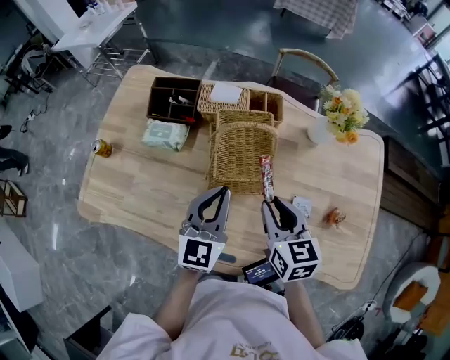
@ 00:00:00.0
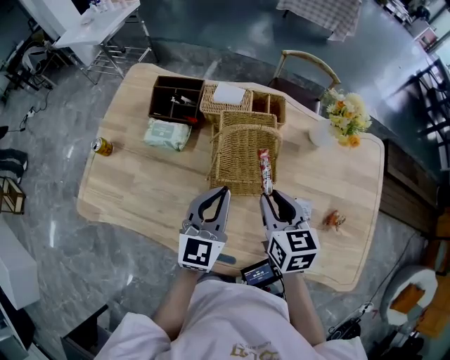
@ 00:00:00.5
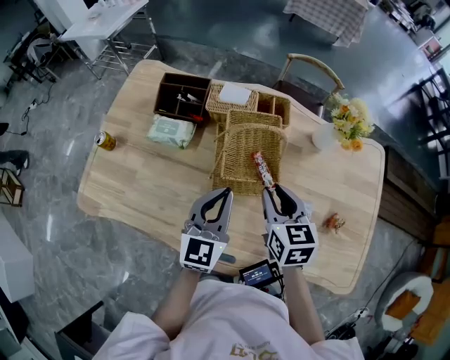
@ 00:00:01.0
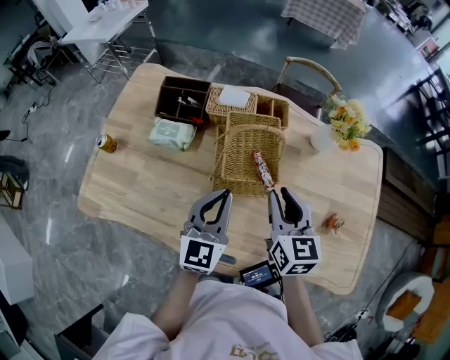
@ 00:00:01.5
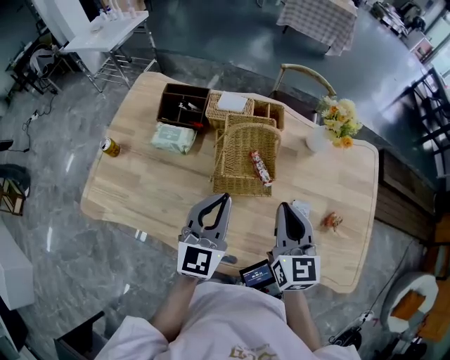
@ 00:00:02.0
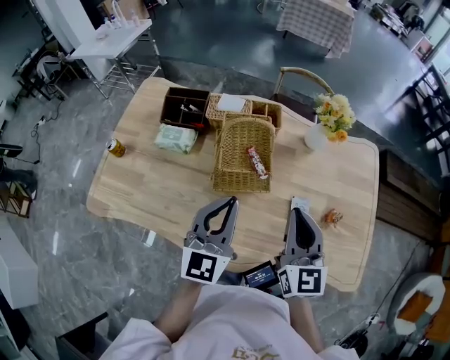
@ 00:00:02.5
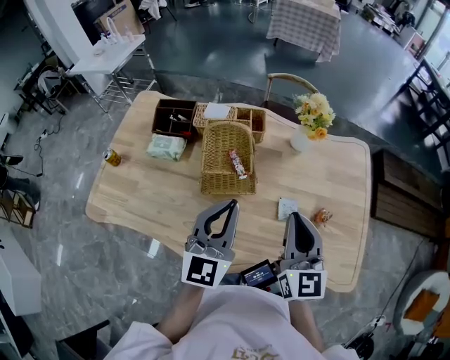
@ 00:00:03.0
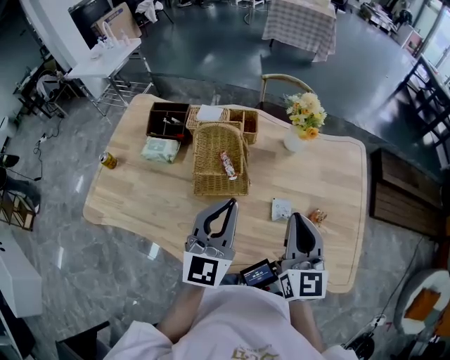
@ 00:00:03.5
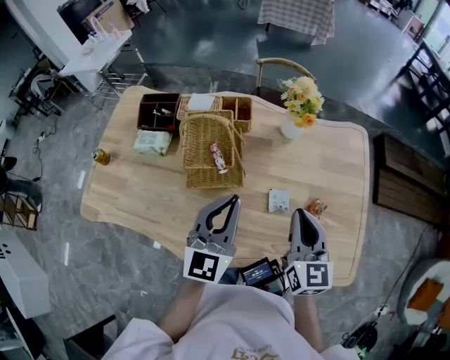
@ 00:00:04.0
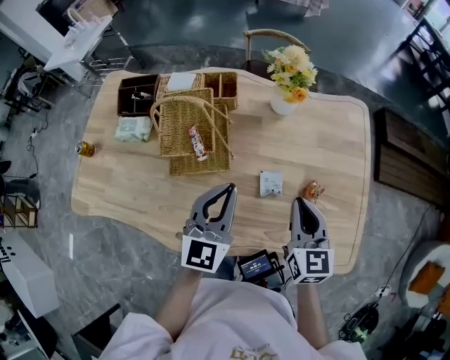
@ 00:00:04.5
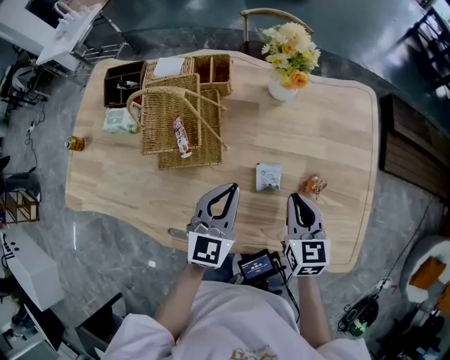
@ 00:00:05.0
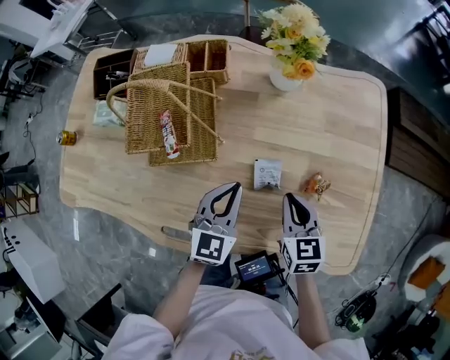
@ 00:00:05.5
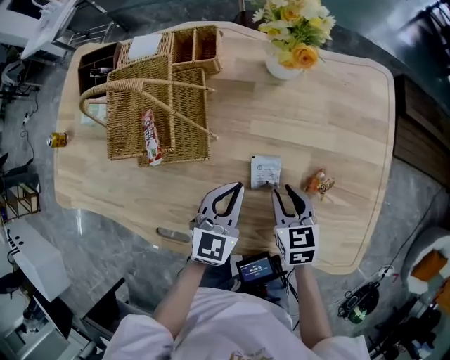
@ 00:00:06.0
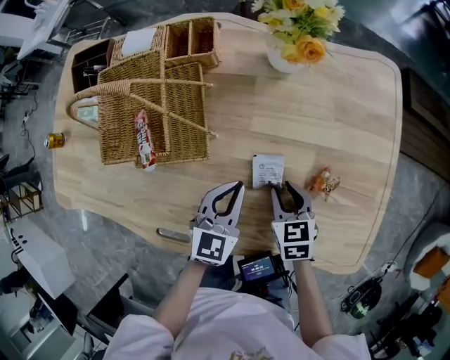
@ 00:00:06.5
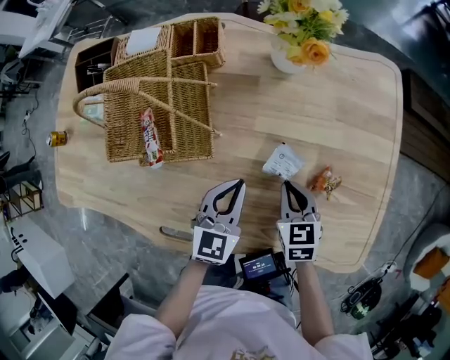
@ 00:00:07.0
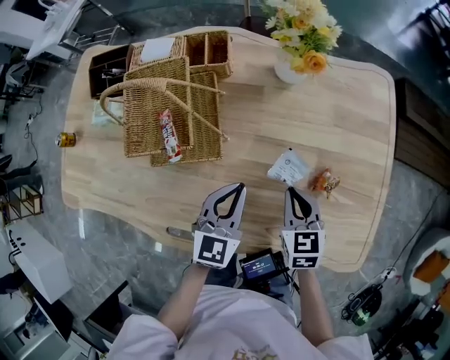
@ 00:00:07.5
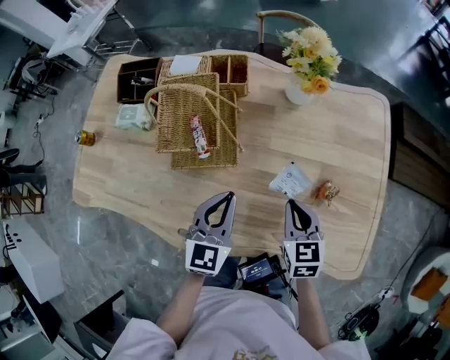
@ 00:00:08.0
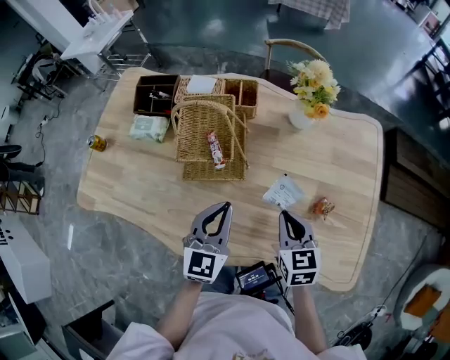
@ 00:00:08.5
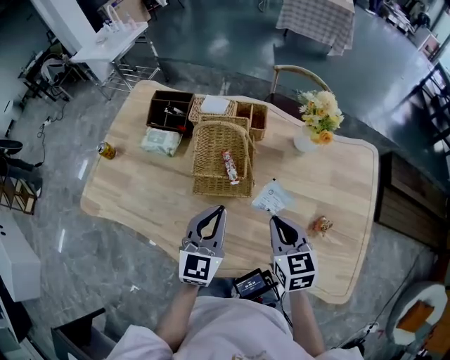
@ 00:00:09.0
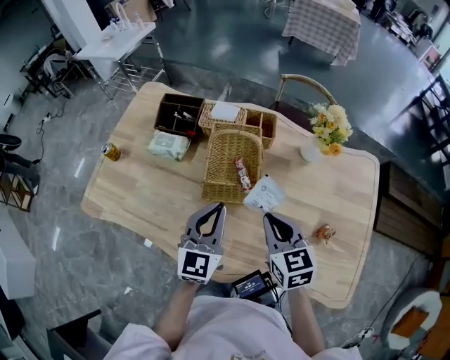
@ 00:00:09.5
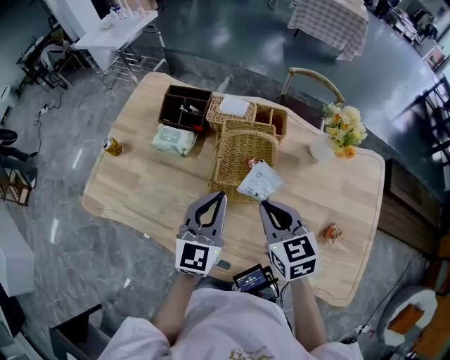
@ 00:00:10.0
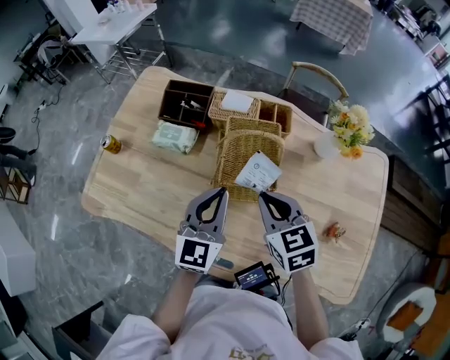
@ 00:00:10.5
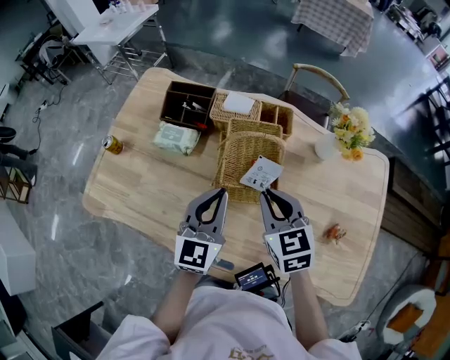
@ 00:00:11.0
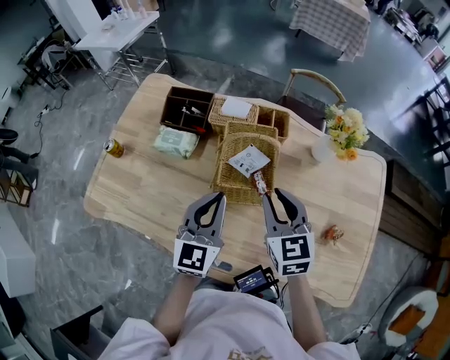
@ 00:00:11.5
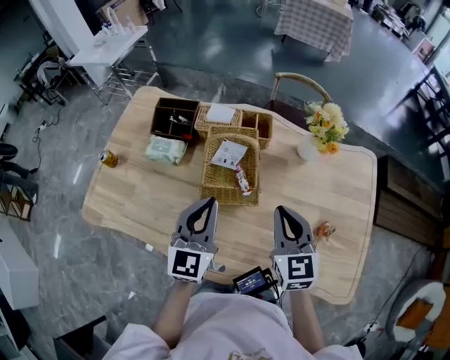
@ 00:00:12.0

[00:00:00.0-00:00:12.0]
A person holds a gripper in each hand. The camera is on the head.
00:00:00.0 to 00:00:02.0: The left gripper ends up some 5 cm from where it was. The right gripper goes some 5 cm upward, swivels roughly 20 degrees, and closes its fingers.
00:00:02.0 to 00:00:04.0: Both grippers travel together to the right, roughly 15 cm.
00:00:04.0 to 00:00:06.0: The right gripper shifts approximately 25 cm downward, points its fingers about 30 degrees further downward, and opens. Meanwhile the left gripper goes roughly 25 cm downward and to the right, and changes its angle by roughly 20 degrees.
00:00:06.0 to 00:00:08.0: The left gripper heads upward and to the left, covering about 10 cm, while the right gripper goes about 10 cm upward, and closes.
00:00:08.0 to 00:00:10.0: The grippers both shift to the left, upward and forward by roughly 25 cm. The right gripper swivels about 20 degrees.
00:00:10.0 to 00:00:12.0: The right gripper heads to the right, covering approximately 10 cm, and changes its angle by roughly 20 degrees.

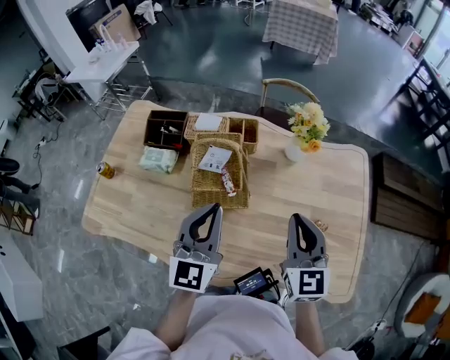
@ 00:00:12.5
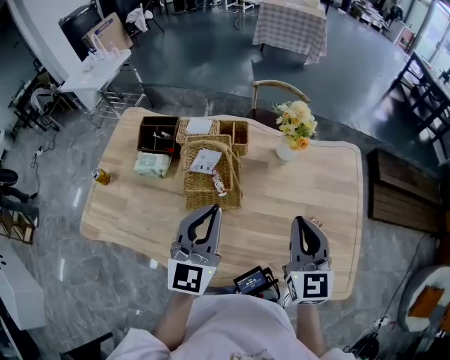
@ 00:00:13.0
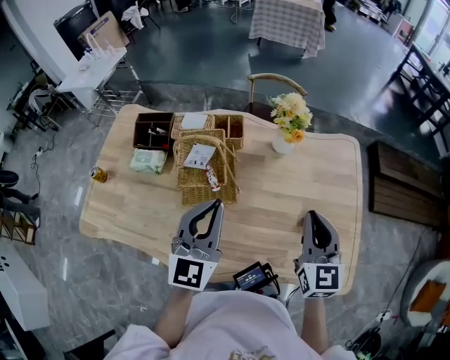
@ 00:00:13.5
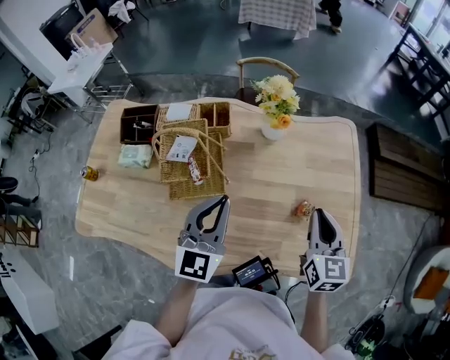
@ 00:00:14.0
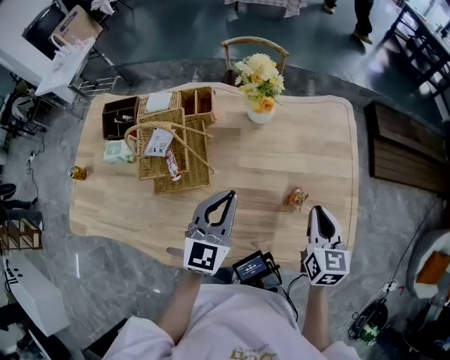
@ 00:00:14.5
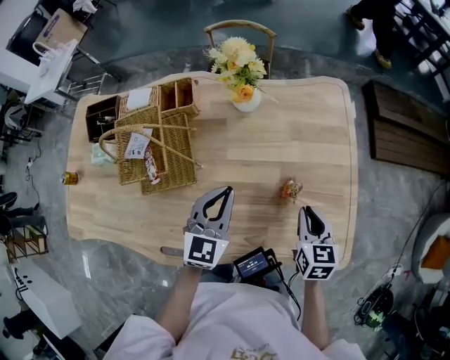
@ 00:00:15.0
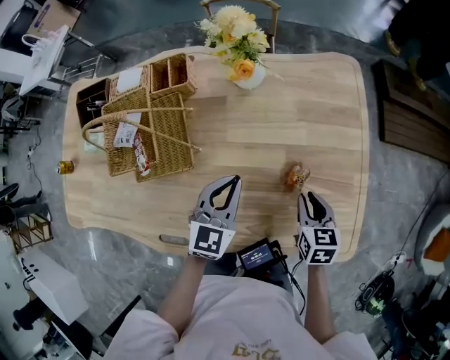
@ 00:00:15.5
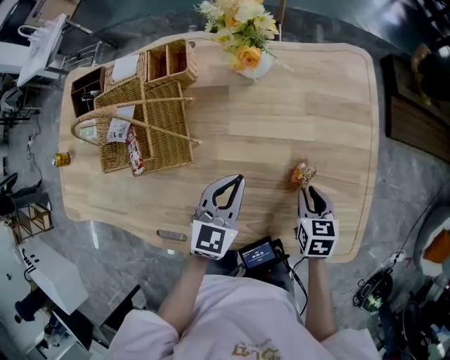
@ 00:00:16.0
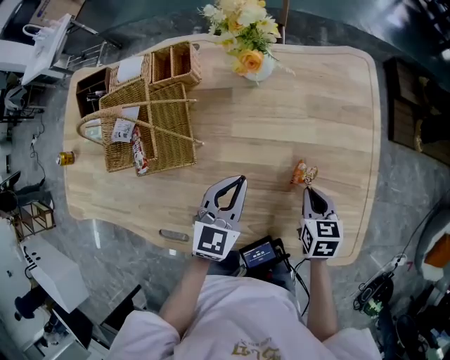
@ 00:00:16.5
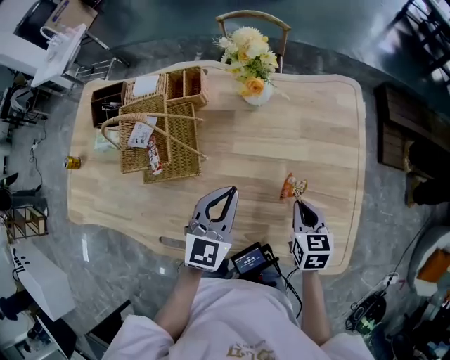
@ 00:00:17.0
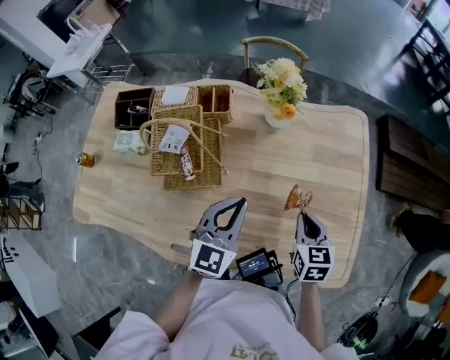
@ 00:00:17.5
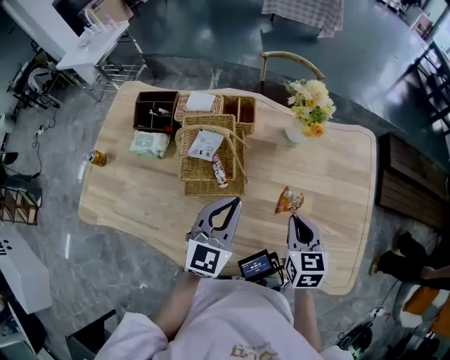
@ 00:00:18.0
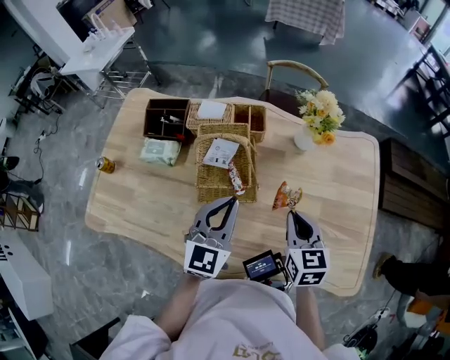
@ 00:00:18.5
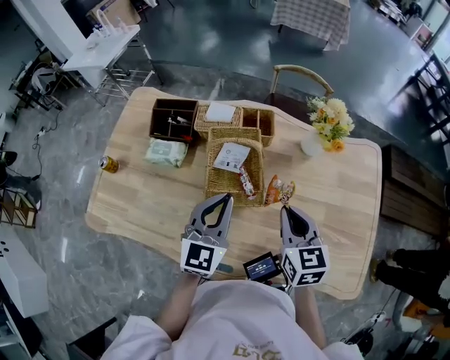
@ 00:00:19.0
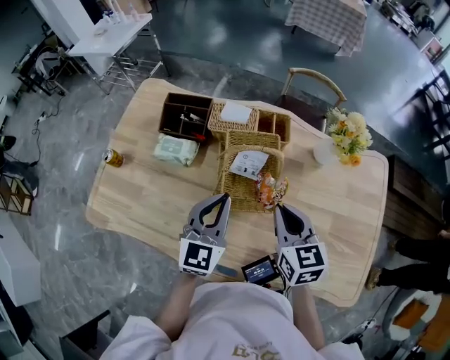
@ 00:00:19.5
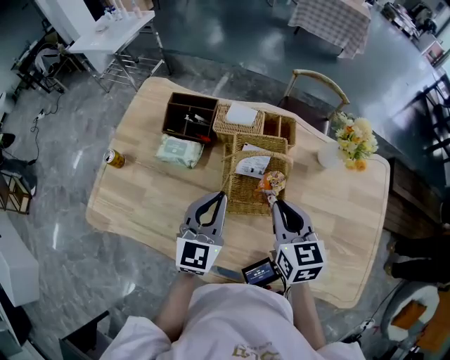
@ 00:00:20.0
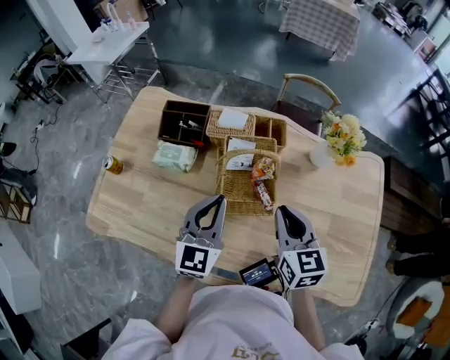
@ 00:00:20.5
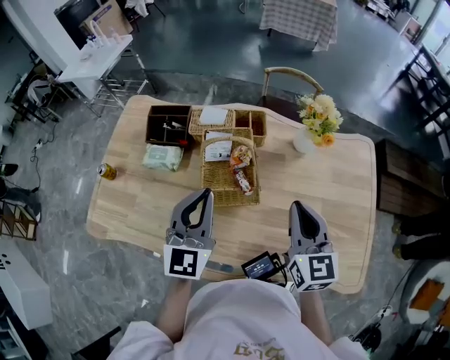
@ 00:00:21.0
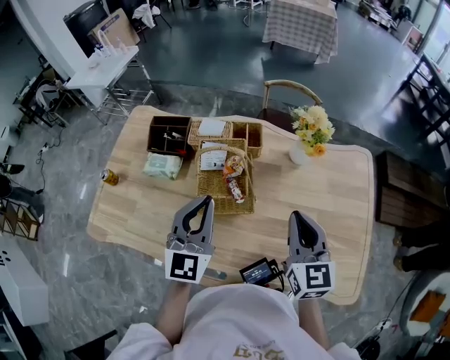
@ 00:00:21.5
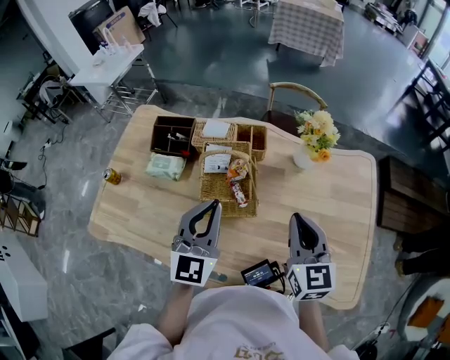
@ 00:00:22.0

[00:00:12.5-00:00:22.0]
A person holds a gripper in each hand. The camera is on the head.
00:00:12.5 to 00:00:14.5: The two grippers go roughly 25 cm to the right and downward. The right gripper rotates about 30 degrees.
00:00:14.5 to 00:00:16.5: The left gripper shifts about 15 cm downward and to the right, while the right gripper goes roughly 20 cm downward, and turns by approximately 20 degrees.
00:00:16.5 to 00:00:18.0: The grippers both shift to the left and upward by about 25 cm.
00:00:18.0 to 00:00:20.0: The two grippers go some 20 cm to the left.
00:00:20.0 to 00:00:22.0: The right gripper shifts about 15 cm to the right, upward and backward; the left gripper moves to the right and upward, approximately 10 cm.

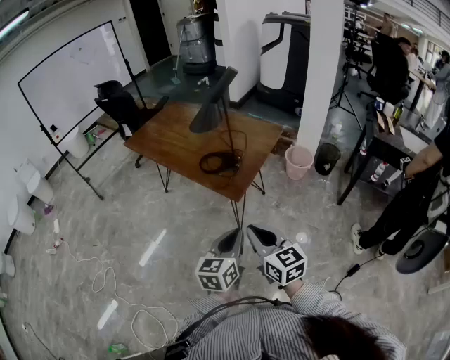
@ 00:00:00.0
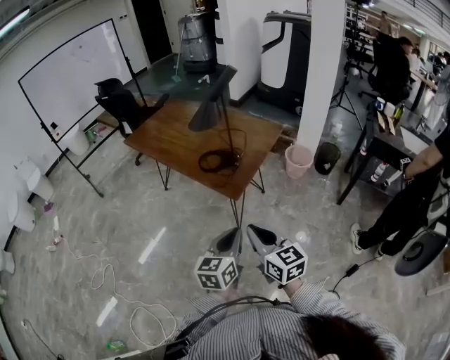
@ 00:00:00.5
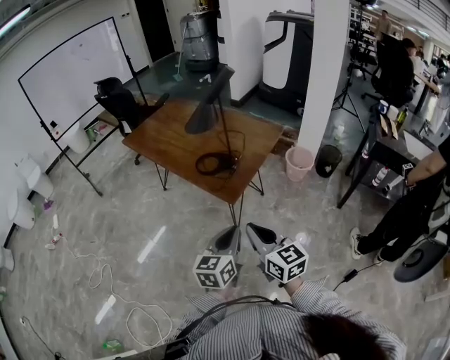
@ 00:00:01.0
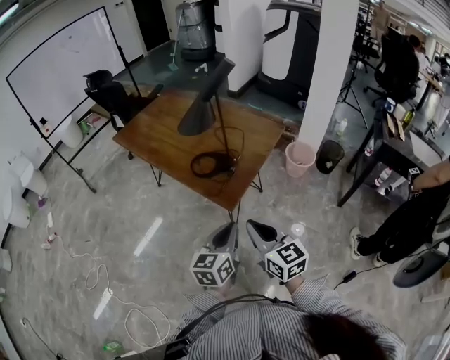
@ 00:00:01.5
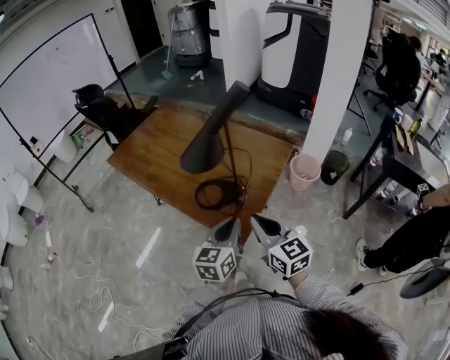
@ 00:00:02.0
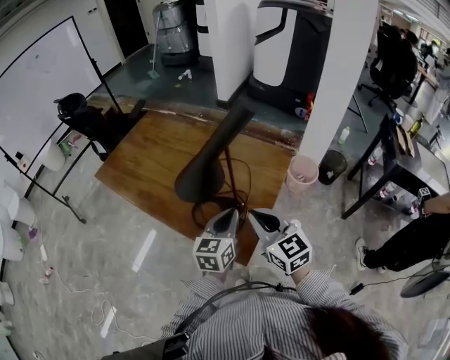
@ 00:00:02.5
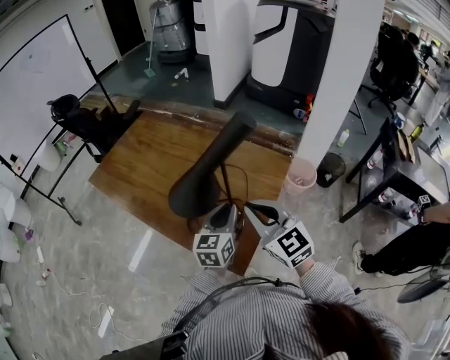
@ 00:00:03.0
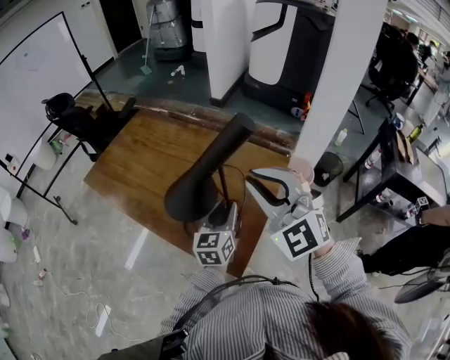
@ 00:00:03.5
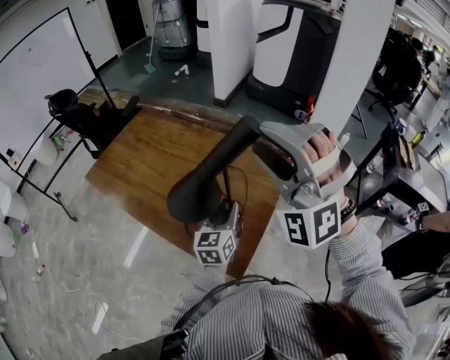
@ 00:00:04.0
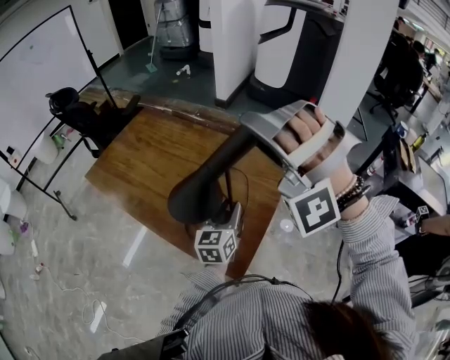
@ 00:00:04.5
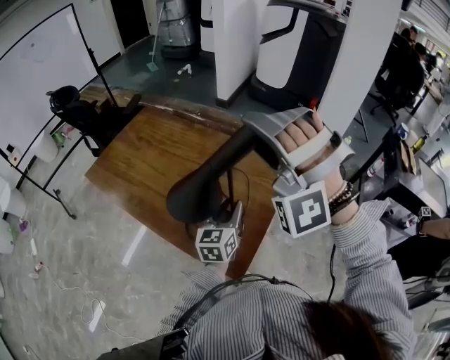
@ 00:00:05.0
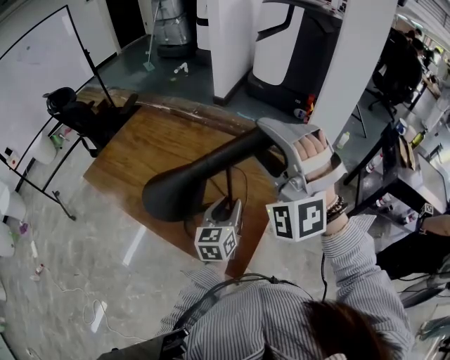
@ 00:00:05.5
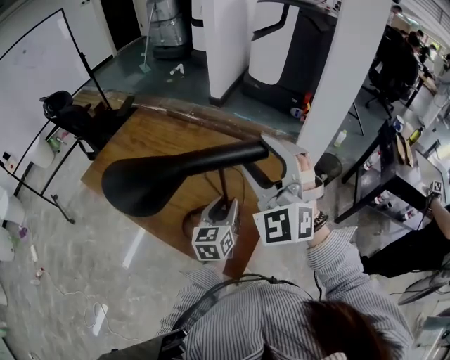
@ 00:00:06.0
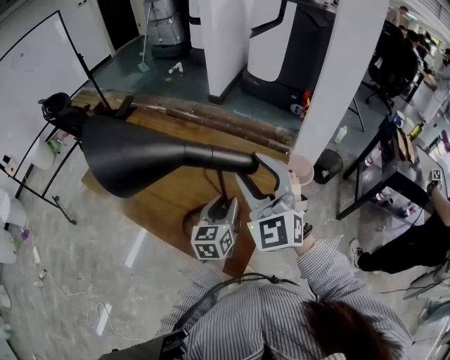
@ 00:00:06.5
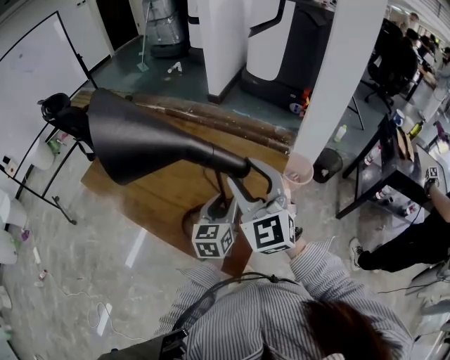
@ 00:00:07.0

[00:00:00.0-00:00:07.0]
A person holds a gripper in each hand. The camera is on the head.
00:00:00.0 to 00:00:02.0: The grippers both shift forward by some 30 cm.
00:00:02.0 to 00:00:03.5: The left gripper shifts roughly 20 cm forward, and opens up, while the right gripper moves forward and upward, roughly 25 cm, and rotates around the line of its fingers by some 50 degrees, counterclockwise from behind.
00:00:03.5 to 00:00:05.0: The right gripper is displaced upward and forward by approximately 10 cm, rolls counterclockwise, seen from behind, by some 60 degrees, and opens.
00:00:05.0 to 00:00:07.0: The right gripper moves downward, roughly 10 cm, and rolls clockwise, seen from behind, by about 80 degrees.
